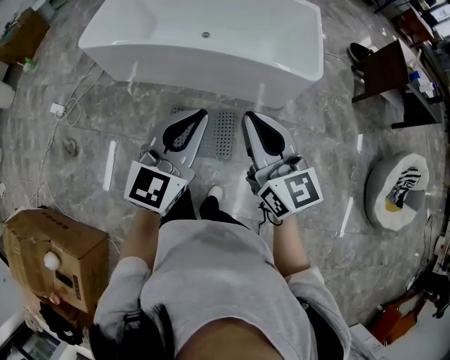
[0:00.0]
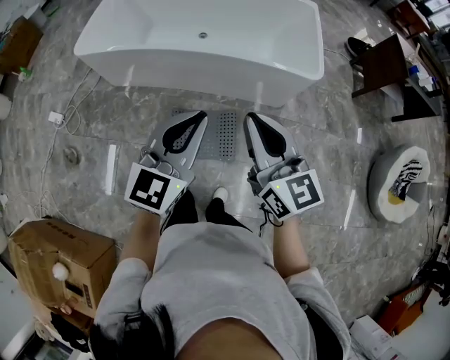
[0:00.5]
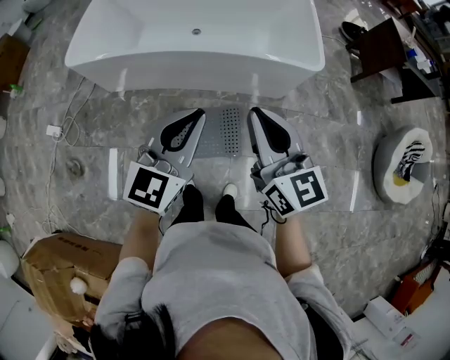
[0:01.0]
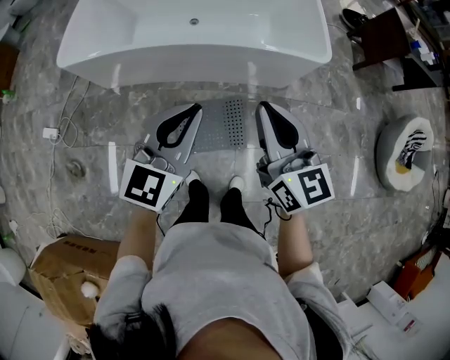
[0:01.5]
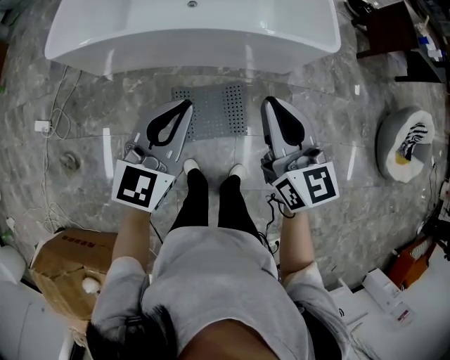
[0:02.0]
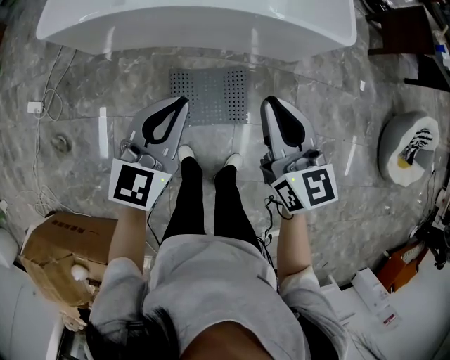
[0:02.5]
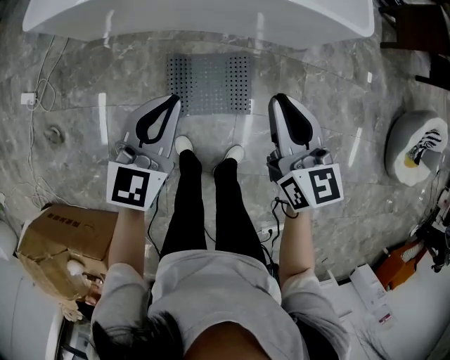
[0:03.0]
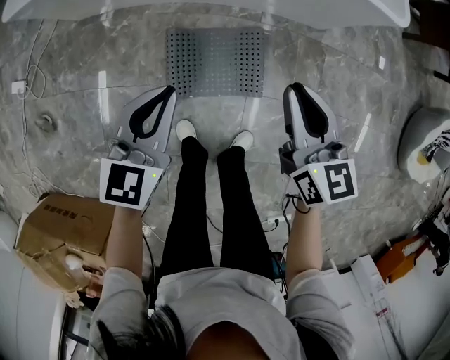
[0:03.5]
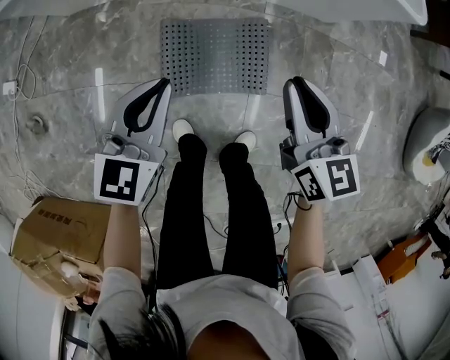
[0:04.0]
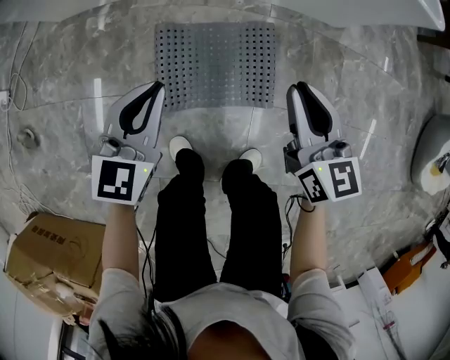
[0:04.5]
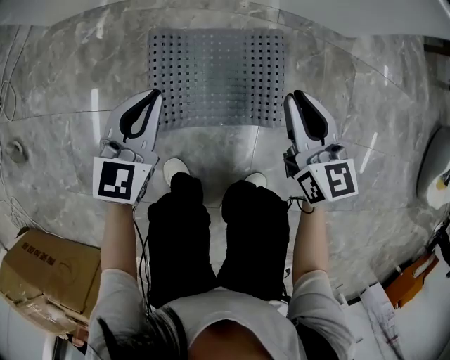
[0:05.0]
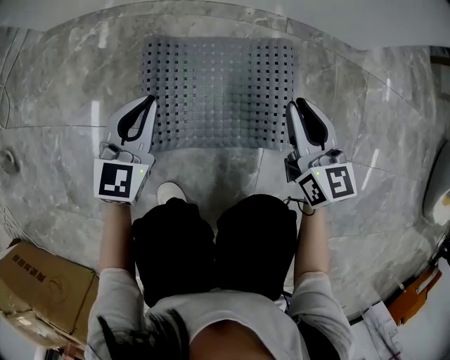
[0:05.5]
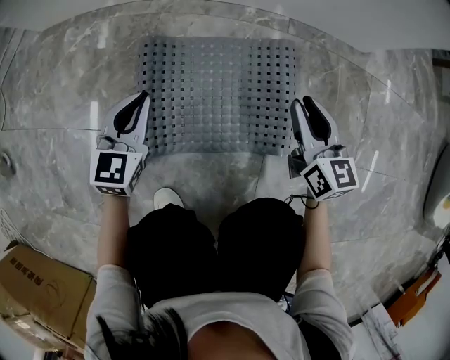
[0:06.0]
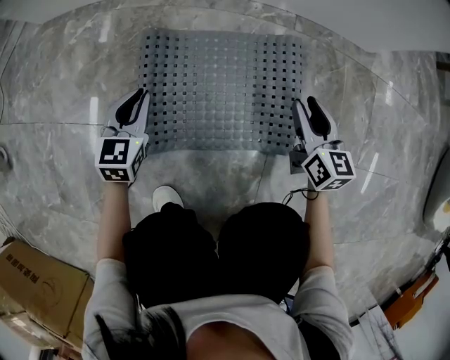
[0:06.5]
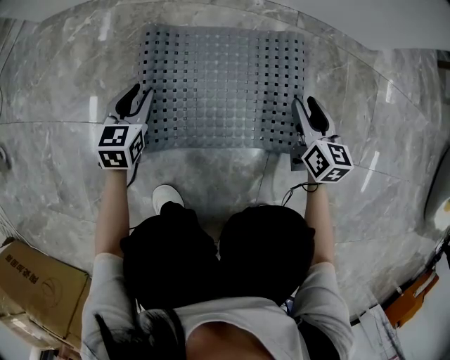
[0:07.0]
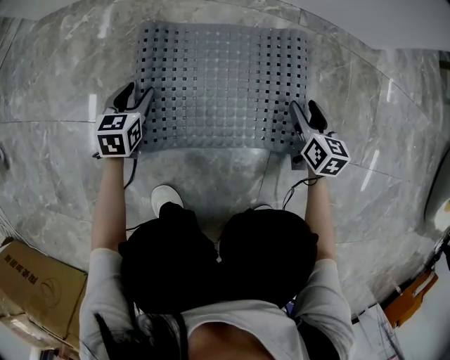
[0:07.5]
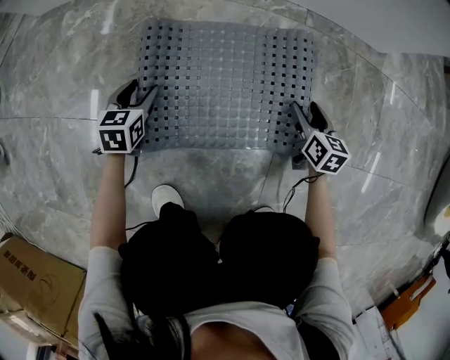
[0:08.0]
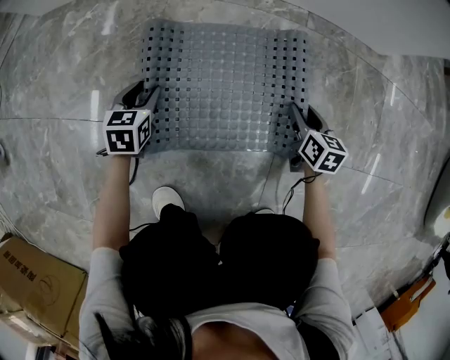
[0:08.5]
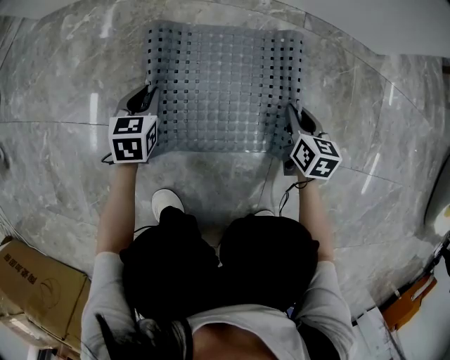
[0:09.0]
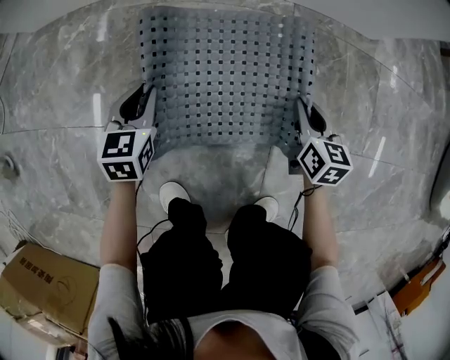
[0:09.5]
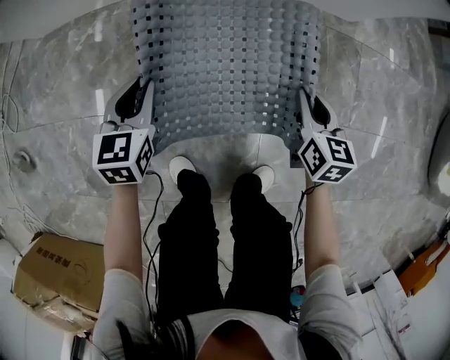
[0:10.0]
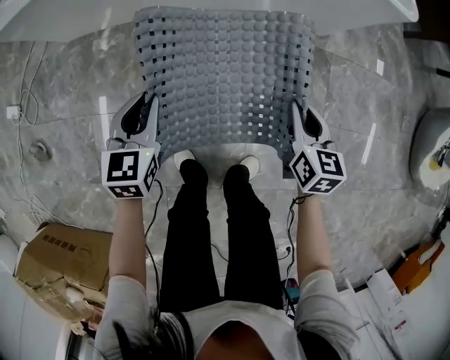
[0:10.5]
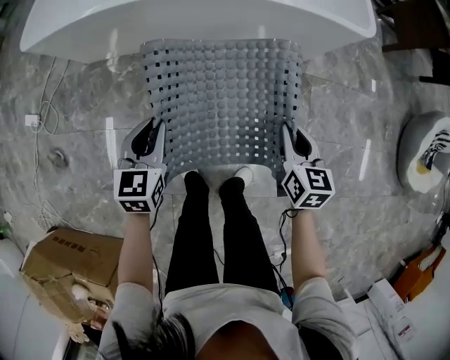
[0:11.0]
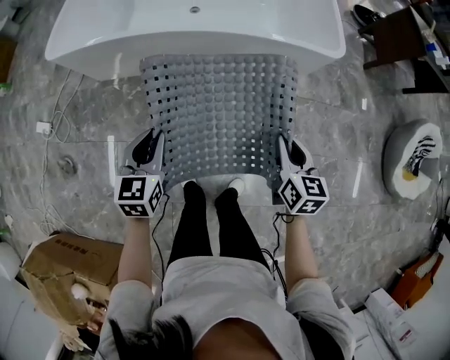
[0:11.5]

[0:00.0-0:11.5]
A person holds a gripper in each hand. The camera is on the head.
0:00.0 to 0:02.0: The right gripper moves forward, to the left and downward, approximately 20 cm, while the left gripper moves to the left, forward and downward, roughly 25 cm.
0:02.0 to 0:04.0: Both grippers move downward, about 40 cm.
0:04.0 to 0:06.0: Both grippers travel together downward, about 40 cm.
0:06.0 to 0:07.5: The two grippers go some 15 cm downward. The right gripper opens its fingers; the left gripper turns by some 20 degrees, and opens up.
0:07.5 to 0:09.5: The left gripper goes approximately 10 cm upward and to the right, and closes up, while the right gripper shifts roughly 5 cm upward, and closes.
0:09.5 to 0:11.5: The grippers both shift upward by some 70 cm.

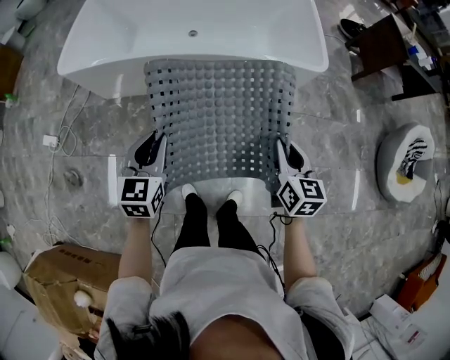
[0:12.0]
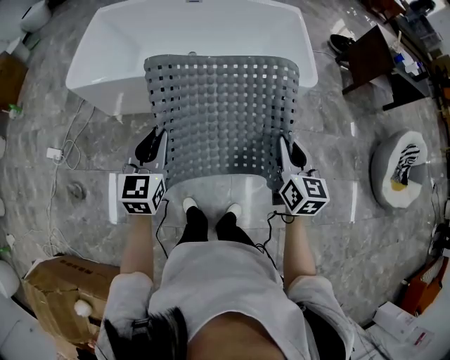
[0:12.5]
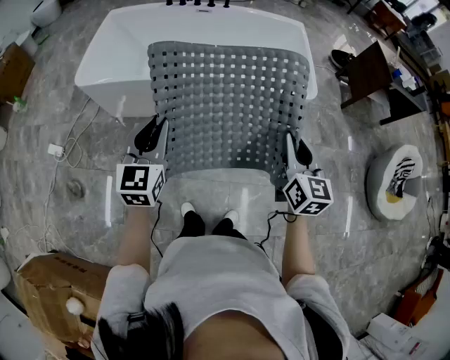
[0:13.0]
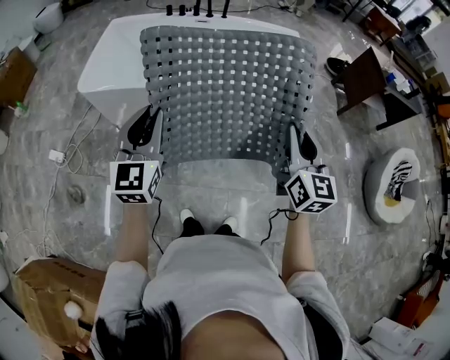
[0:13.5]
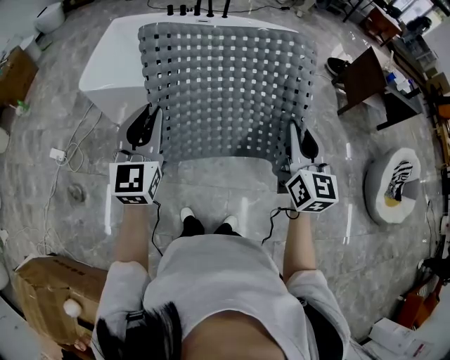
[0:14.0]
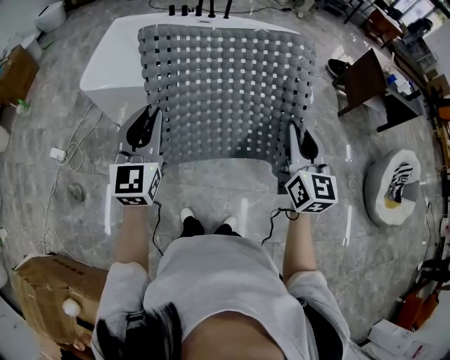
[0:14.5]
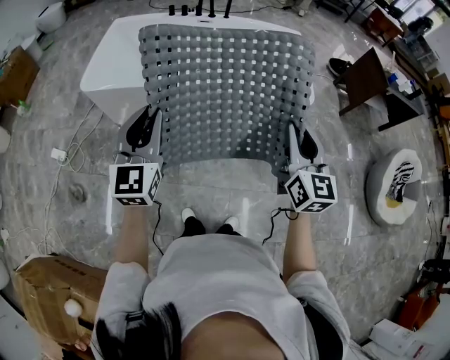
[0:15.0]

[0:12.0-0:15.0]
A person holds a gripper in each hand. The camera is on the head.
0:12.0 to 0:13.5: Both grippers travel together upward, about 20 cm. The left gripper rotates some 30 degrees, while the right gripper swivels some 20 degrees.
0:13.5 to 0:15.0: The grippers make only small movements.

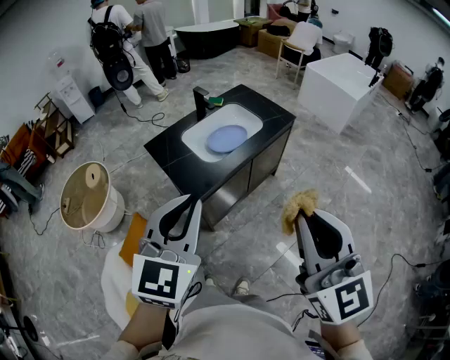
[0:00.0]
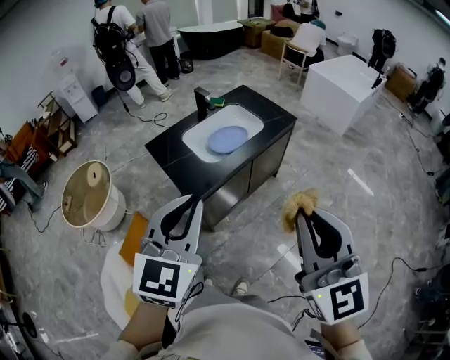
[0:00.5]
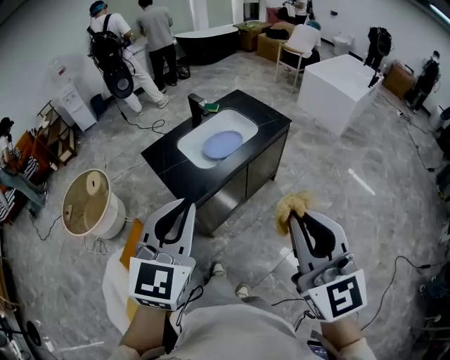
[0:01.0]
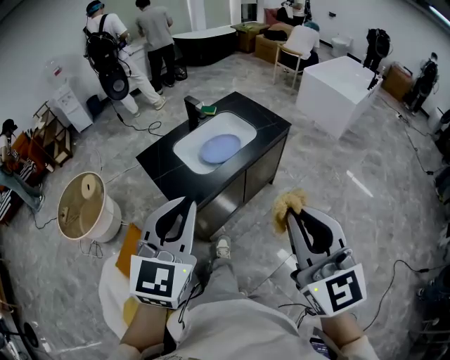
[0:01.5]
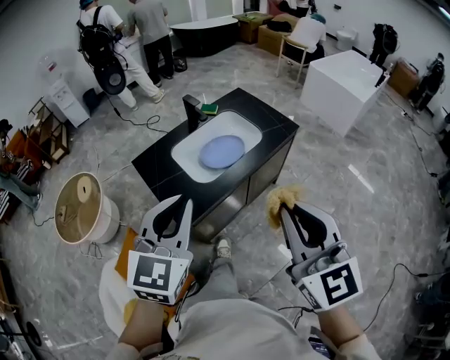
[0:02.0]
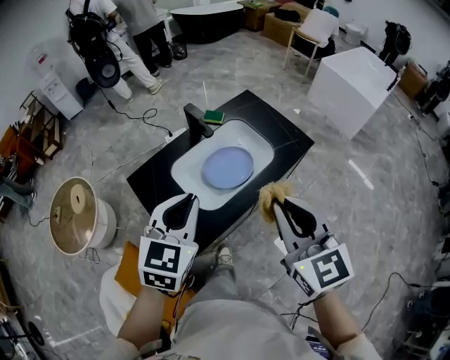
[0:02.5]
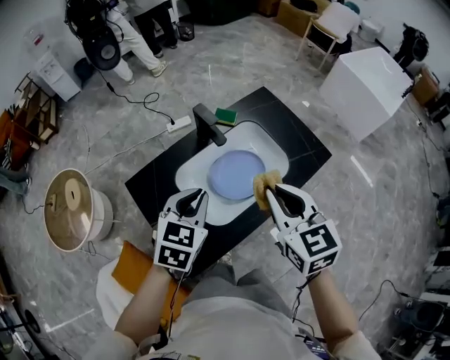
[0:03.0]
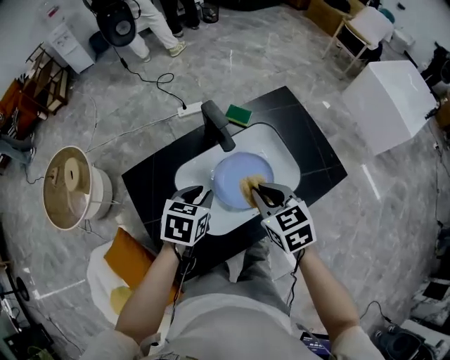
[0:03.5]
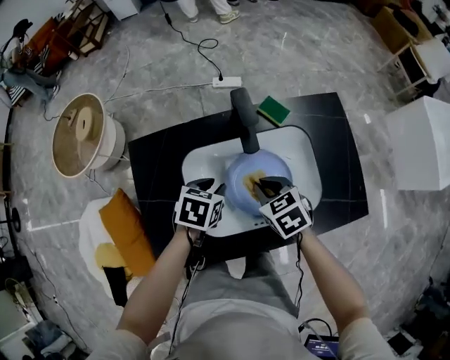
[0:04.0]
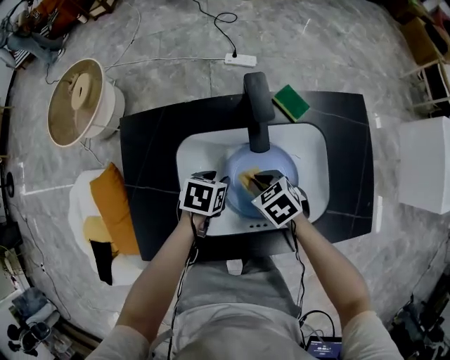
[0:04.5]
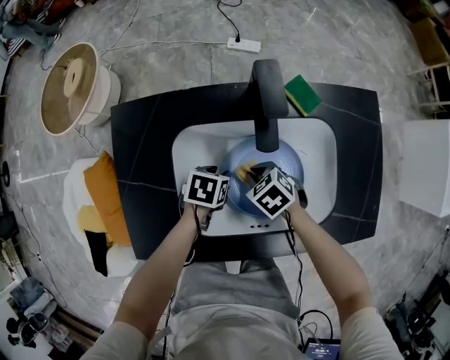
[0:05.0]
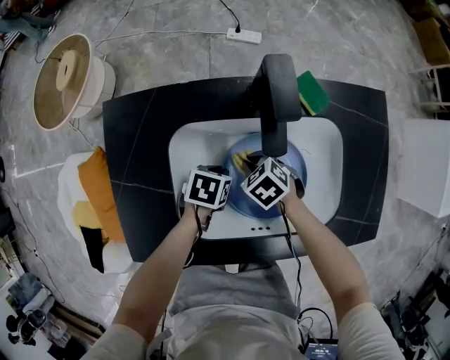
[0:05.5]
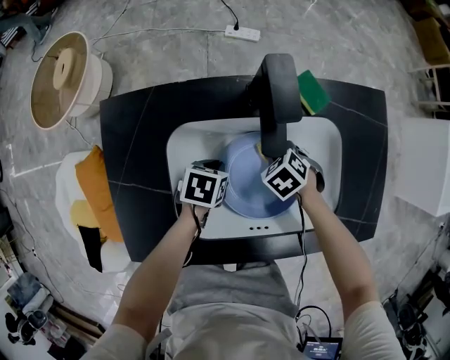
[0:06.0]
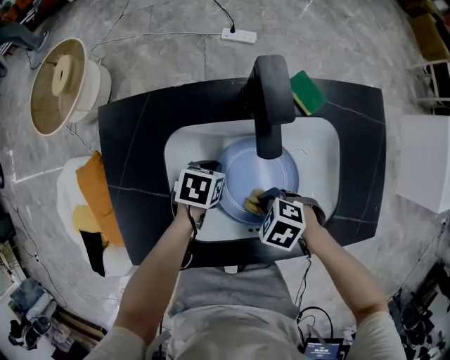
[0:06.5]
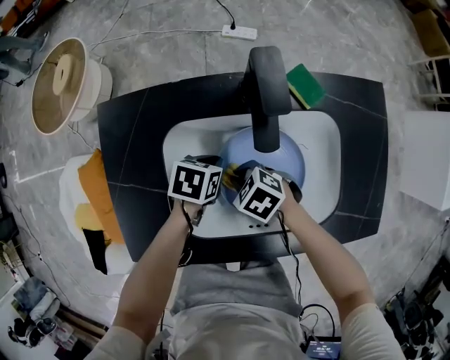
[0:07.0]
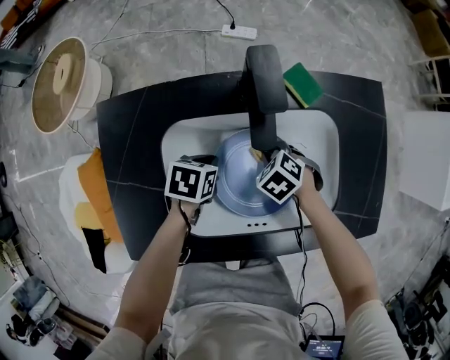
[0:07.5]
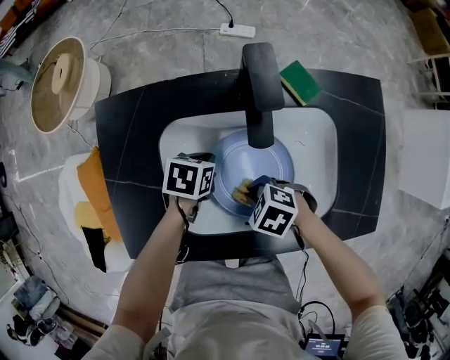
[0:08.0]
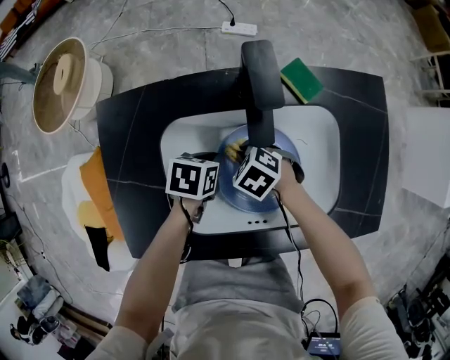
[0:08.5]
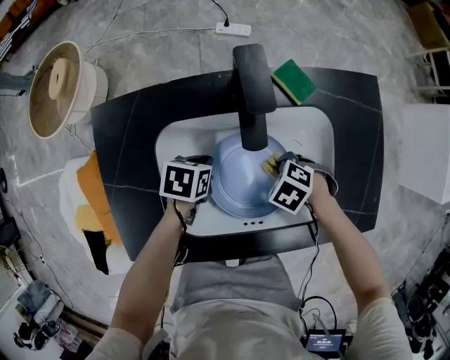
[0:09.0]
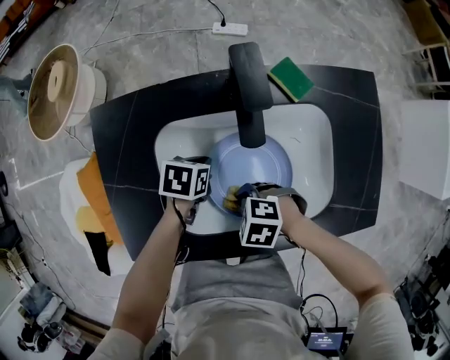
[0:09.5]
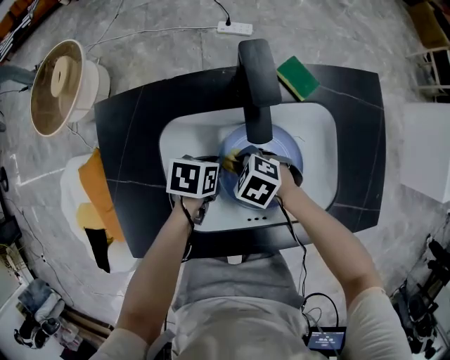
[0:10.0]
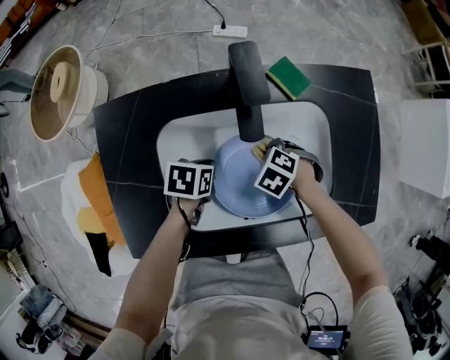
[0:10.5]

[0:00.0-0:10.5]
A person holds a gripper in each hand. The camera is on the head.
0:00.0 to 0:02.0: The two grippers go roughly 15 cm forward.
0:02.0 to 0:04.0: Both grippers are carried about 50 cm. The right gripper tilts its fingers approximately 50 degrees downward. The left gripper points its fingers approximately 50 degrees further downward, and opens.
0:04.0 to 0:06.5: The two grippers go some 15 cm downward. The right gripper swivels about 50 degrees, while the left gripper closes.
0:06.5 to 0:08.5: The right gripper shifts by about 15 cm.

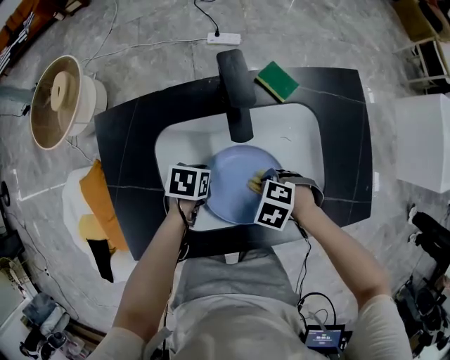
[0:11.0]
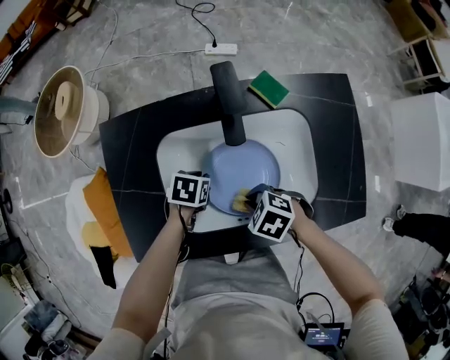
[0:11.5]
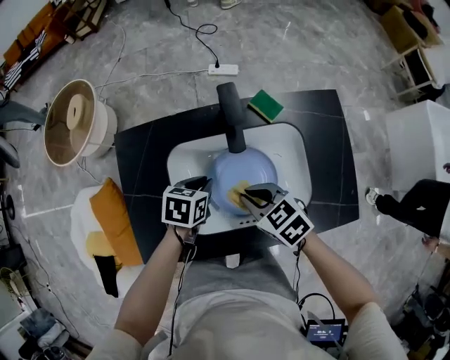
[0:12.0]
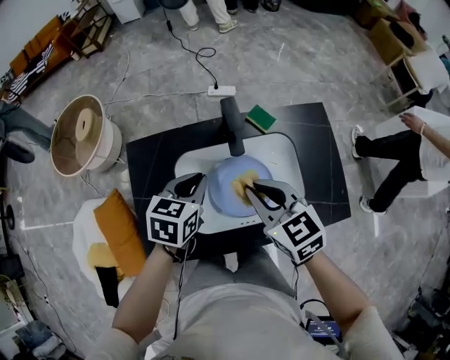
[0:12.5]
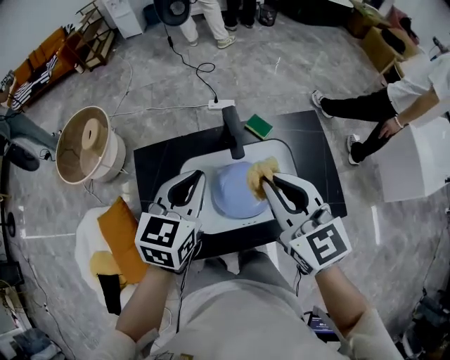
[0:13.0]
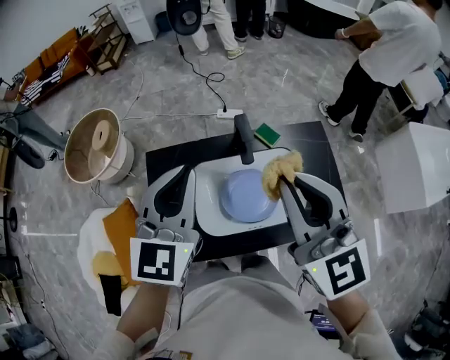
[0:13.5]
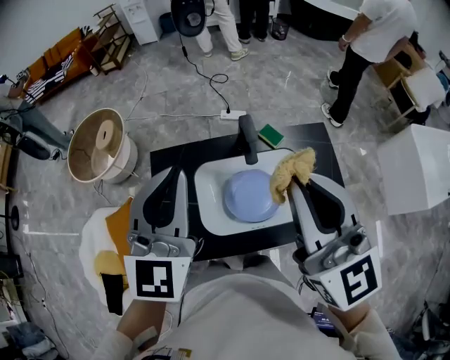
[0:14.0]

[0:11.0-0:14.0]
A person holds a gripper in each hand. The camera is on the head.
0:11.0 to 0:12.5: The grippers both shift upward by roughly 30 cm. The left gripper rotates some 40 degrees, while the right gripper points its fingers about 50 degrees further upward.
0:12.5 to 0:14.0: The grippers both shift upward by some 30 cm. The left gripper points its fingers about 40 degrees further upward. The right gripper angles its fingers upward, by some 30 degrees.
